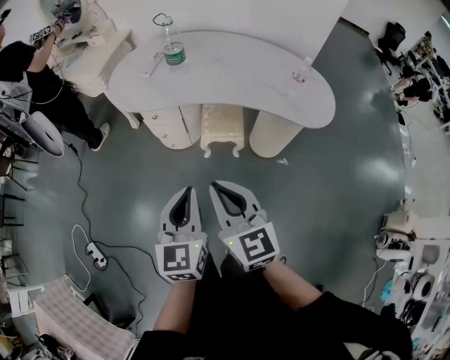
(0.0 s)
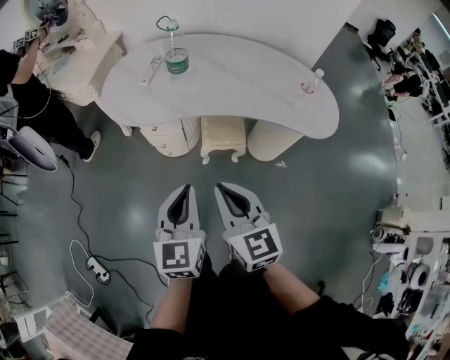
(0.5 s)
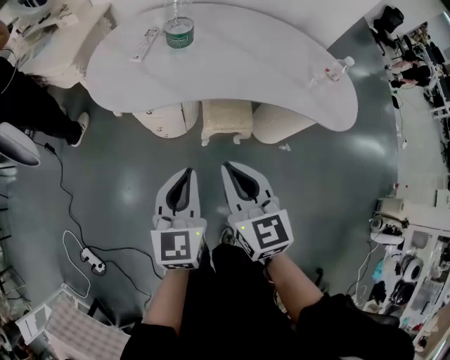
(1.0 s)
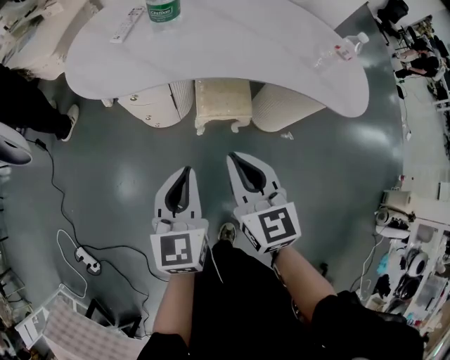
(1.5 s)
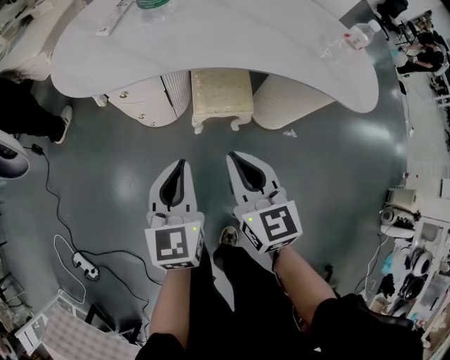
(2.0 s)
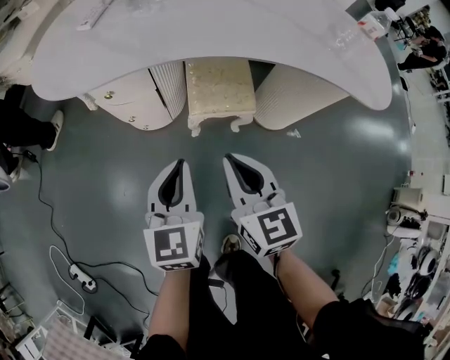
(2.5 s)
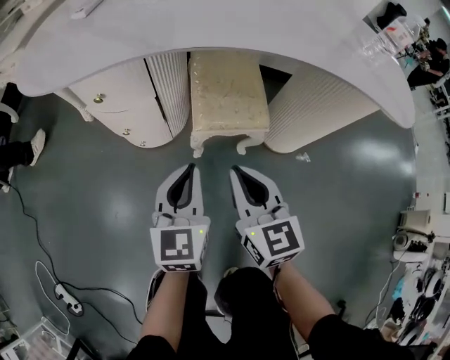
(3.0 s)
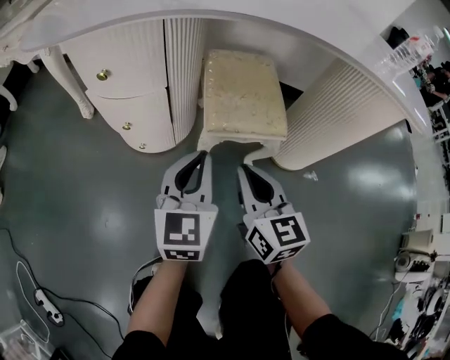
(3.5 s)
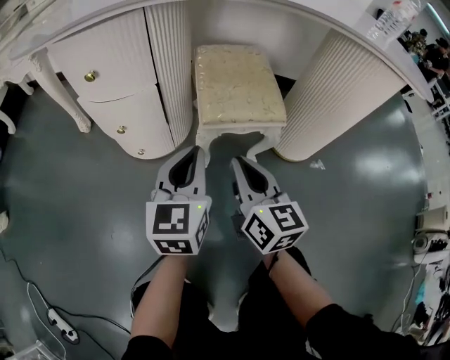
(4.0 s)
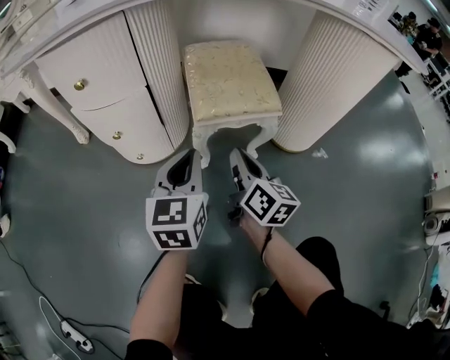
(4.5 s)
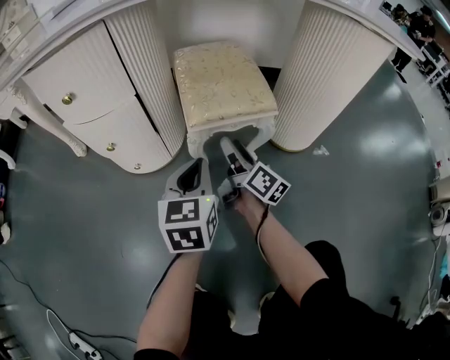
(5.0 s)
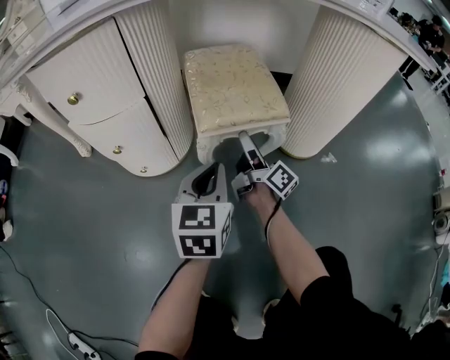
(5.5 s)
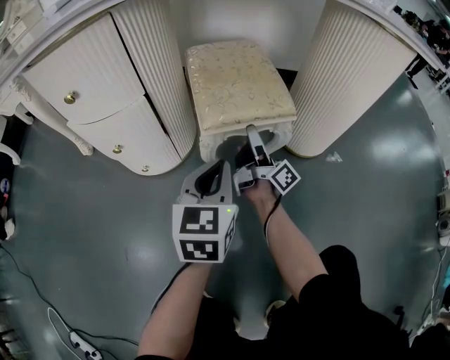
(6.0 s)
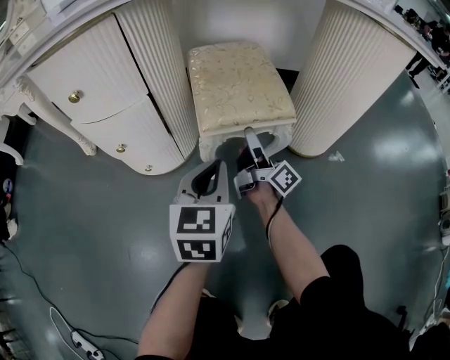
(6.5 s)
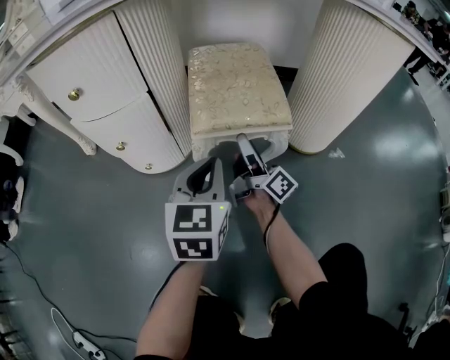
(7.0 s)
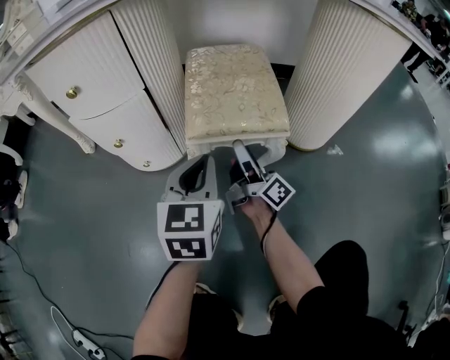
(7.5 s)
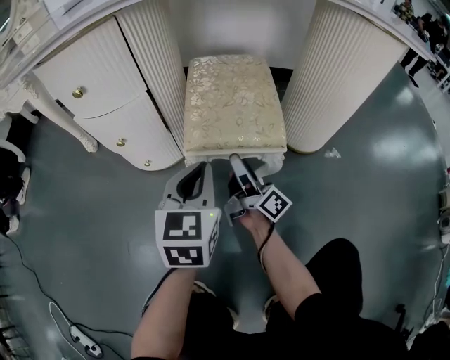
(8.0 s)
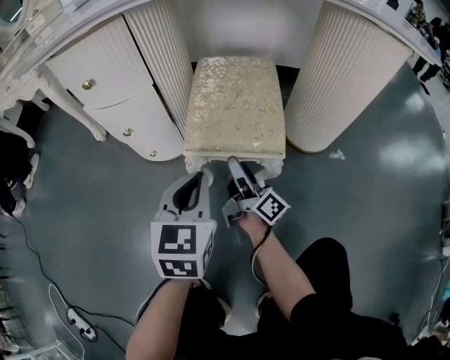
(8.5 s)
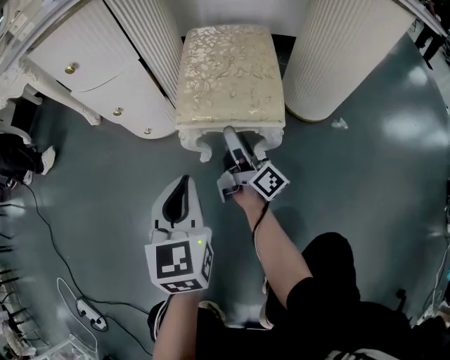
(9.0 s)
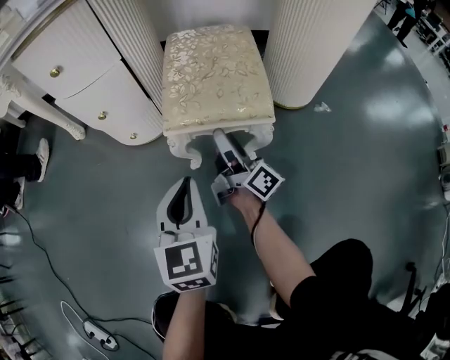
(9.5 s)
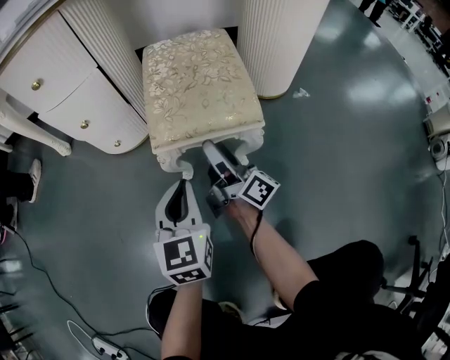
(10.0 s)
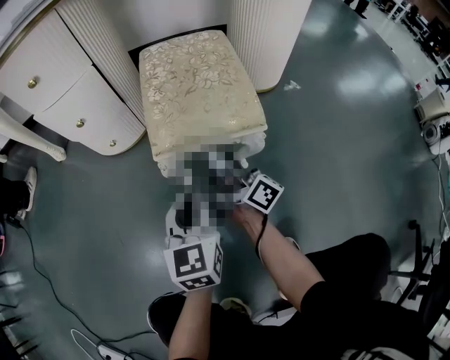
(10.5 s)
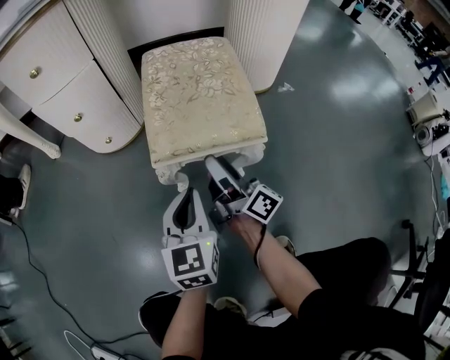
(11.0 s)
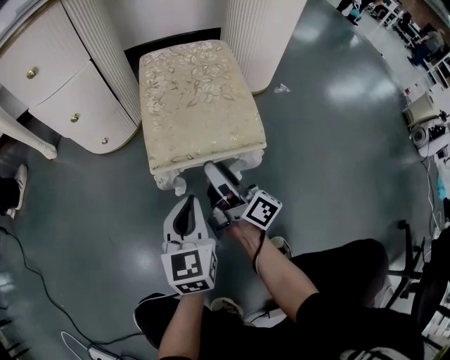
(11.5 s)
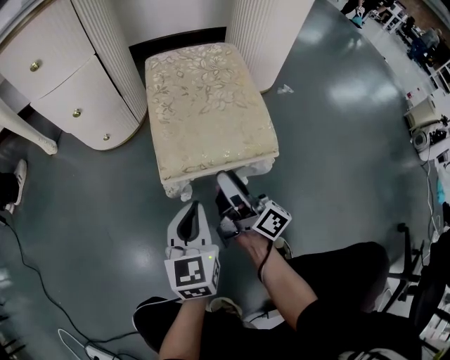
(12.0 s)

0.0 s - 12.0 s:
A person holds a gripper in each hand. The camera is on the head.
0.0 s - 2.0 s: Both grippers travel together downward and forward, about 30 cm.
2.0 s - 4.0 s: The two grippers go roughly 30 cm downward.
4.0 s - 6.0 s: The left gripper moves downward and to the right, some 10 cm; the right gripper moves forward, downward and to the right, about 20 cm, rotates around the line of its fingers by some 50 degrees, clockwise from behind, and opens its fingers.
6.0 s - 8.0 s: The right gripper heads backward, covering about 10 cm. Meanwhile the left gripper goes roughly 5 cm backward.
8.0 s - 10.0 s: The left gripper heads downward, covering about 5 cm.
10.0 s - 12.0 s: The grippers make only small movements.

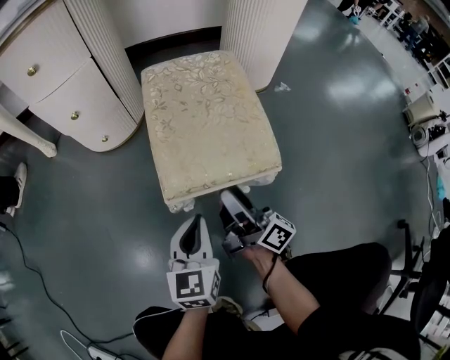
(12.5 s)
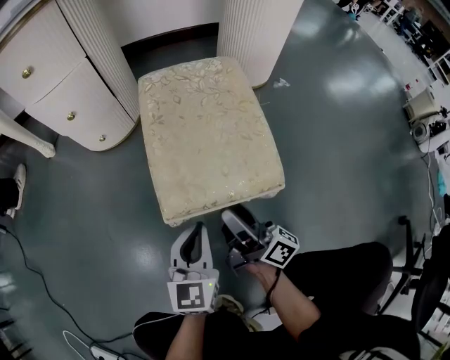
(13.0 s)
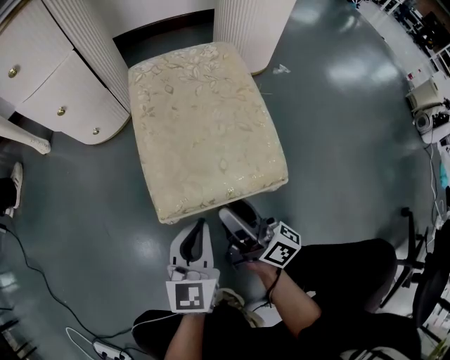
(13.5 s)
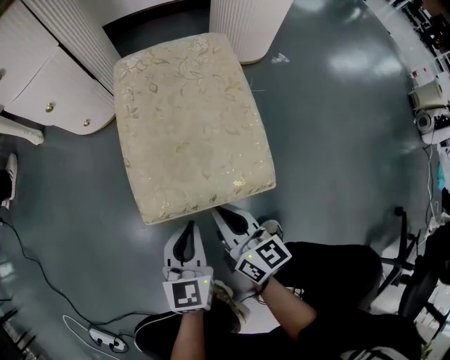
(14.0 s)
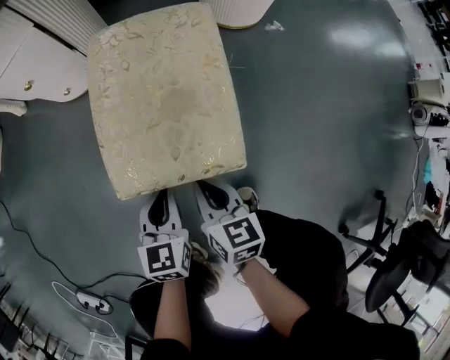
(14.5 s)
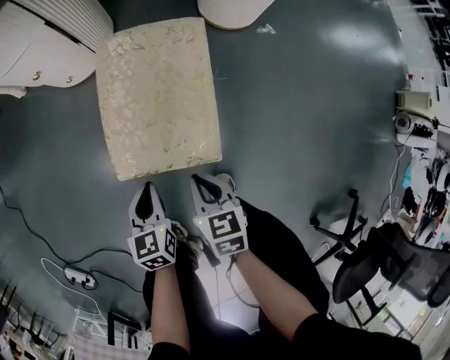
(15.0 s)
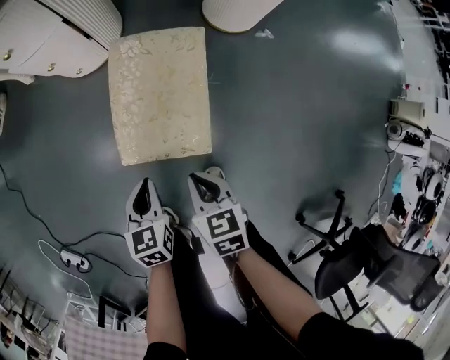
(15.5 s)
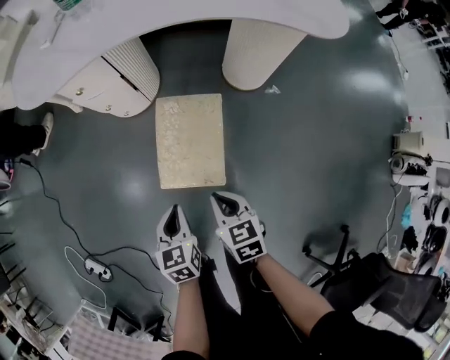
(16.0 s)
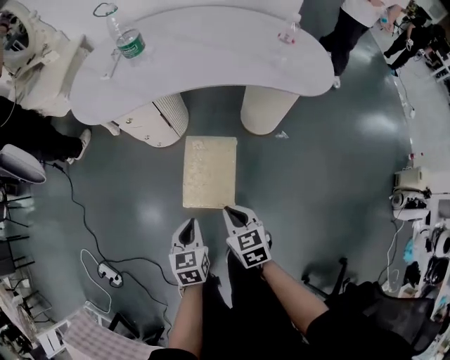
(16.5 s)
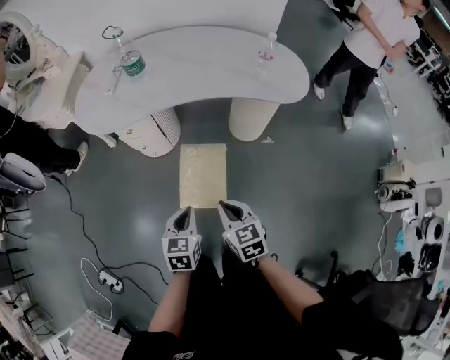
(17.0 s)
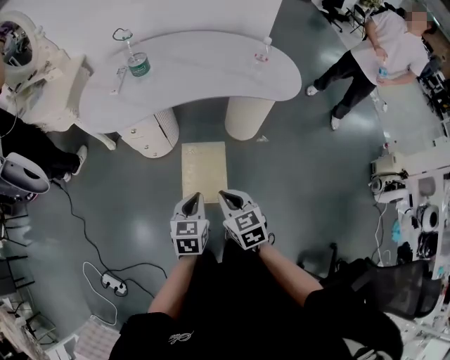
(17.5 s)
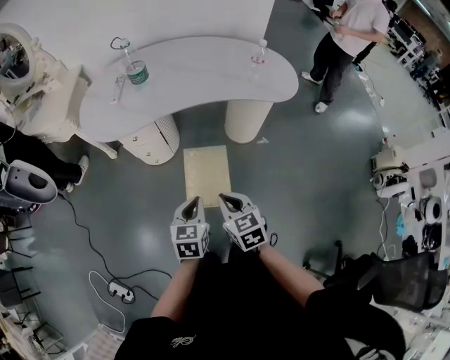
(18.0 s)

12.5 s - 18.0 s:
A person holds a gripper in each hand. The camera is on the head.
12.5 s - 14.5 s: The right gripper tips its fingers downward by approximately 50 degrees, and closes.
14.5 s - 16.0 s: The grippers both shift upward by approximately 50 cm. The left gripper rotates roughly 20 degrees. The right gripper changes its angle by roughly 30 degrees.
16.0 s - 18.0 s: Both grippers move upward, some 35 cm. The left gripper rotates about 20 degrees.

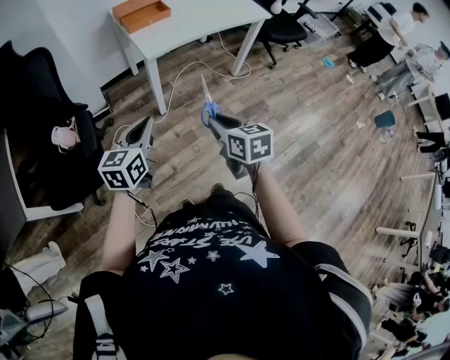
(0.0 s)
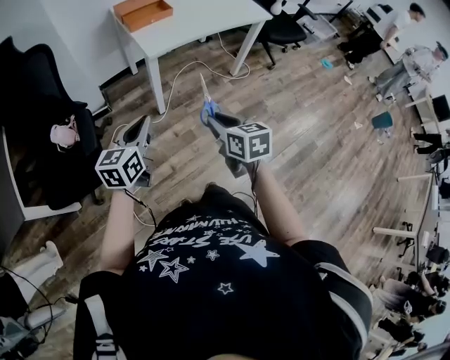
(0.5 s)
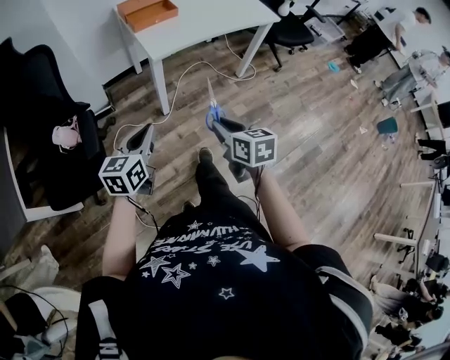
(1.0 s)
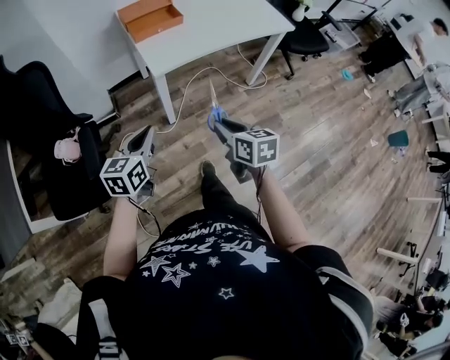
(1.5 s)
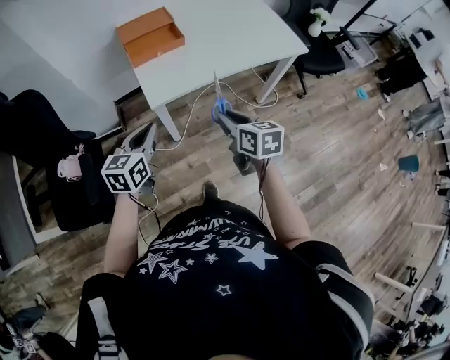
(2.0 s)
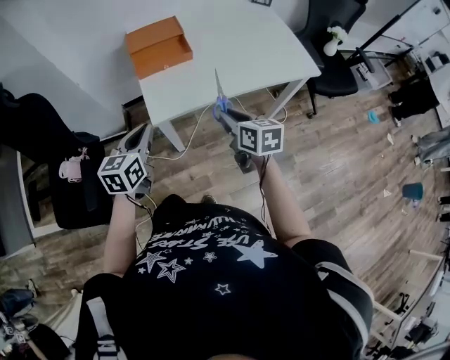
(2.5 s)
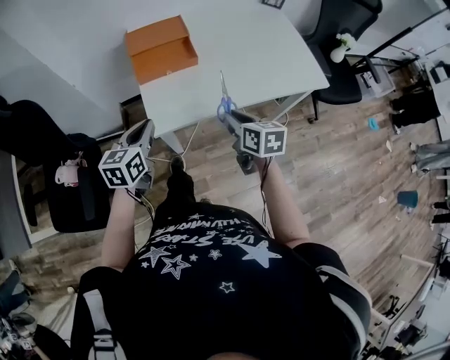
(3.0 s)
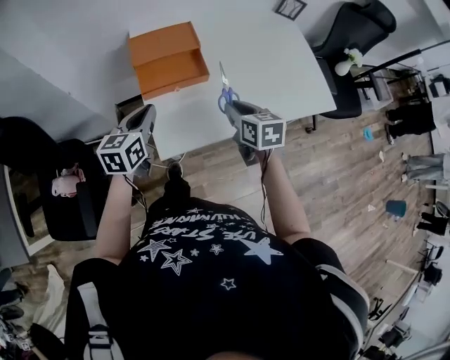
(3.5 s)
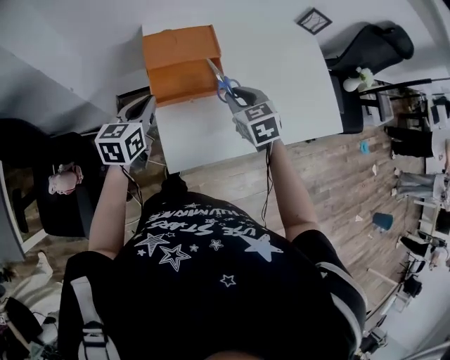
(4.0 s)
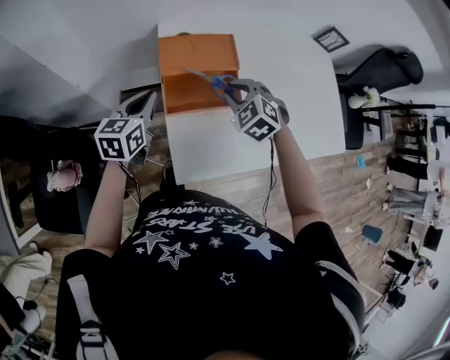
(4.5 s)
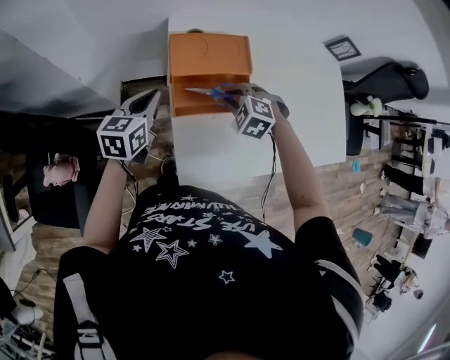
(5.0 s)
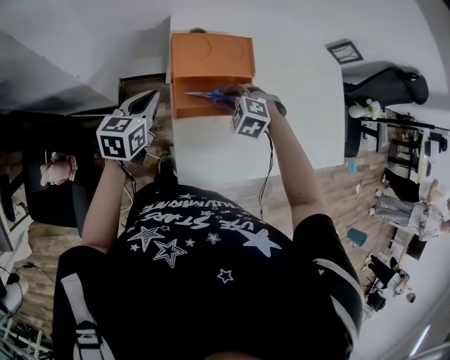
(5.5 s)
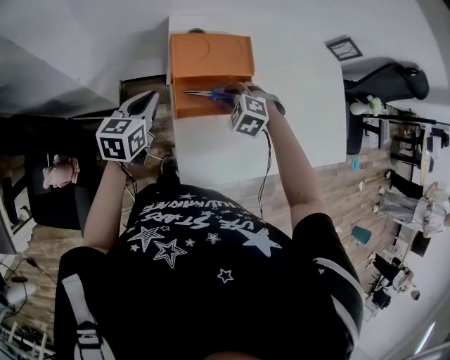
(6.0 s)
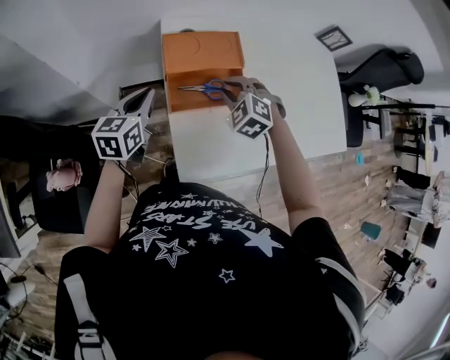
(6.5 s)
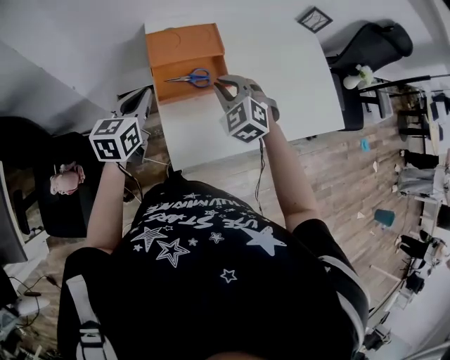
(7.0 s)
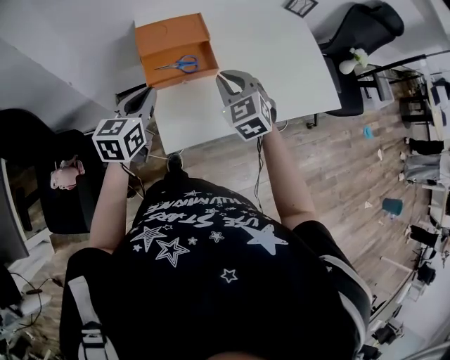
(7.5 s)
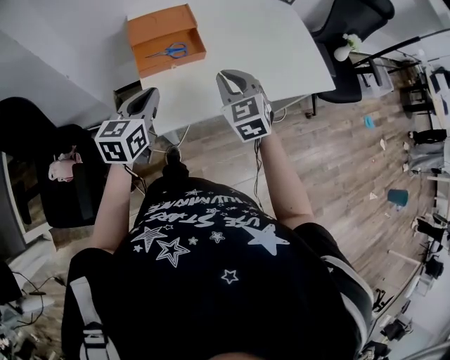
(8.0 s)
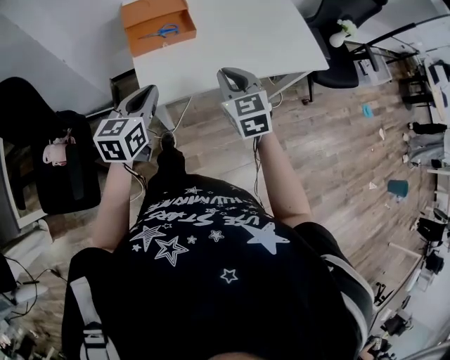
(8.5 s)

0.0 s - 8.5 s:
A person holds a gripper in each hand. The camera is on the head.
0.0 s - 2.0 s: Both grippers move forward, roughly 40 cm.
2.0 s - 4.0 s: Both grippers are carried forward, some 50 cm. The right gripper rotates approximately 40 degrees.
4.0 s - 6.5 s: The grippers both shift to the left and forward by some 15 cm. The right gripper twists about 40 degrees counterclockwise, seen from behind.
6.5 s - 8.5 s: Both grippers move backward and to the right, roughly 40 cm. The right gripper twists approximately 40 degrees clockwise, seen from behind.

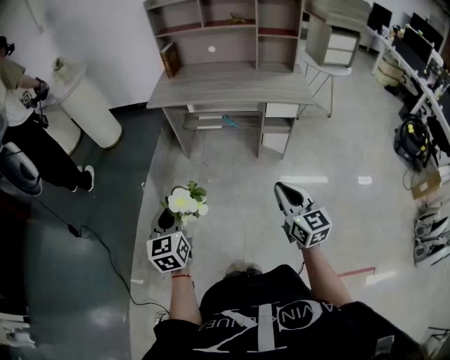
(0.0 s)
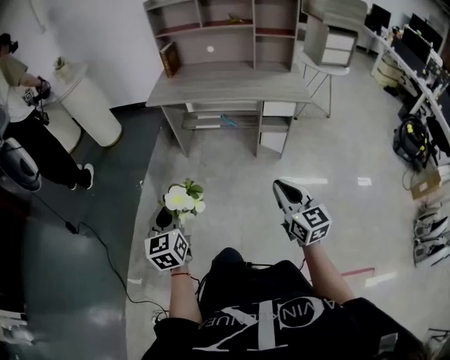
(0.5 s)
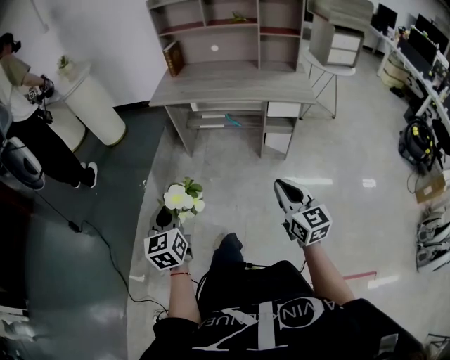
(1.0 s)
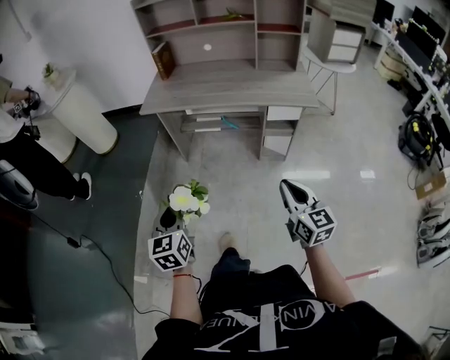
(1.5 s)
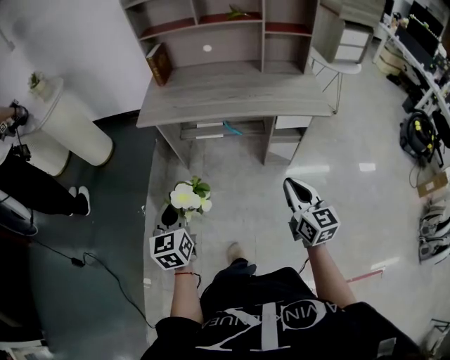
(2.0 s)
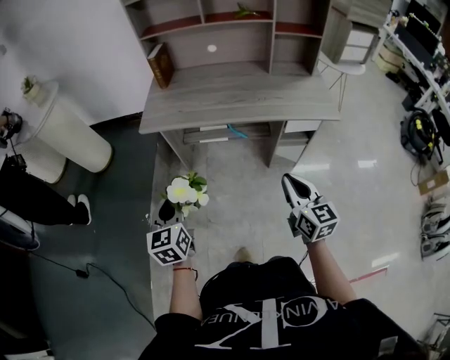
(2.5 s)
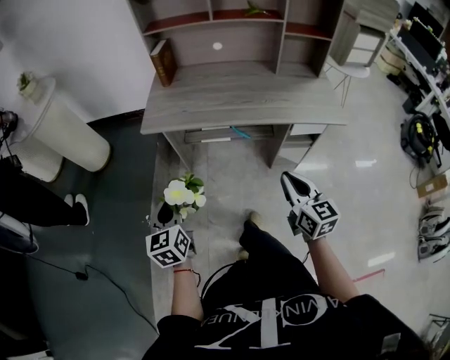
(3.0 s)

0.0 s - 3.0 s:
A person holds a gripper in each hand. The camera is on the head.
0.0 s - 1.5 s: The two grippers go about 10 cm forward.
1.5 s - 3.0 s: Both grippers move forward, about 25 cm.
